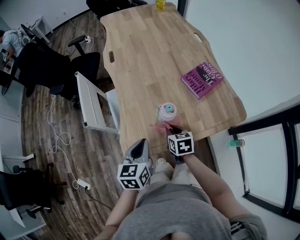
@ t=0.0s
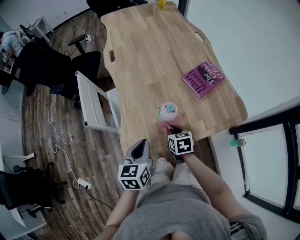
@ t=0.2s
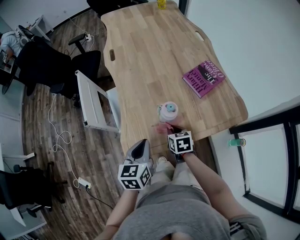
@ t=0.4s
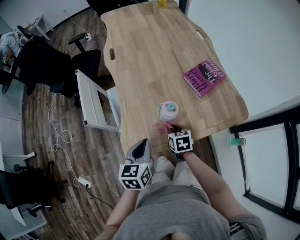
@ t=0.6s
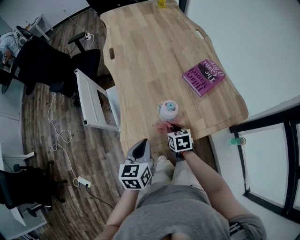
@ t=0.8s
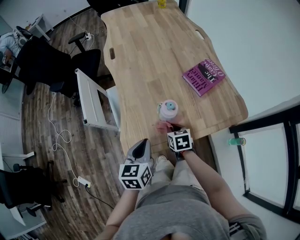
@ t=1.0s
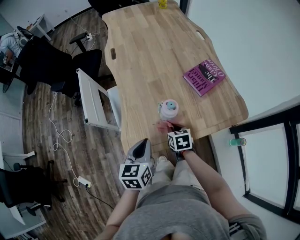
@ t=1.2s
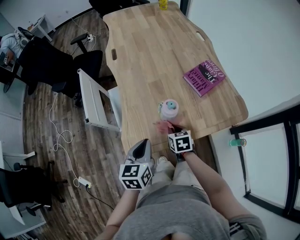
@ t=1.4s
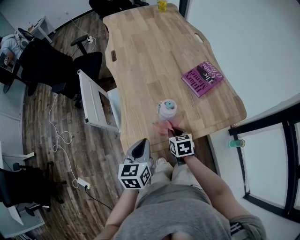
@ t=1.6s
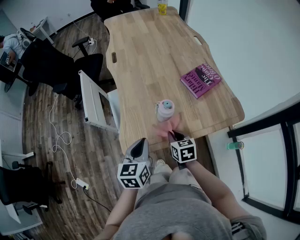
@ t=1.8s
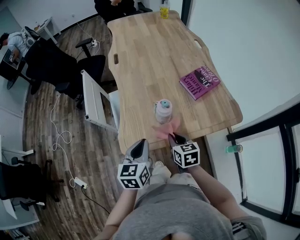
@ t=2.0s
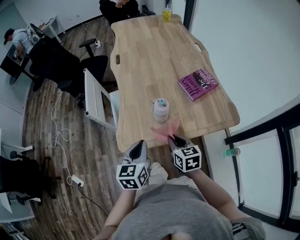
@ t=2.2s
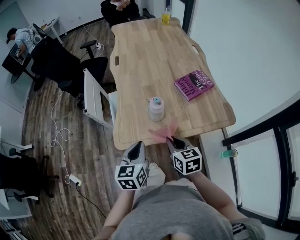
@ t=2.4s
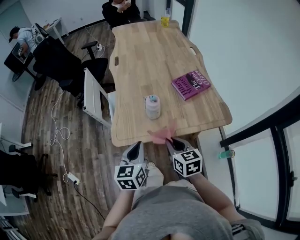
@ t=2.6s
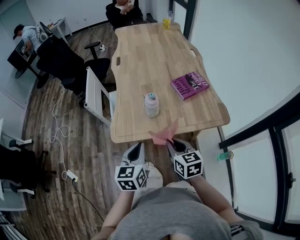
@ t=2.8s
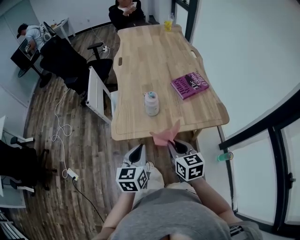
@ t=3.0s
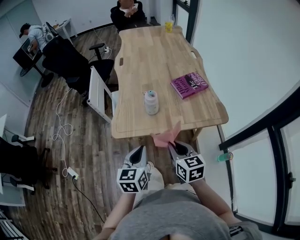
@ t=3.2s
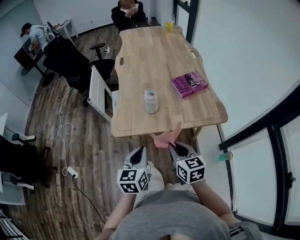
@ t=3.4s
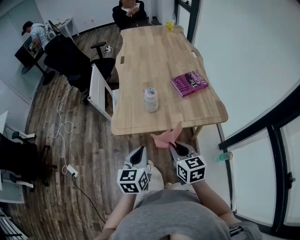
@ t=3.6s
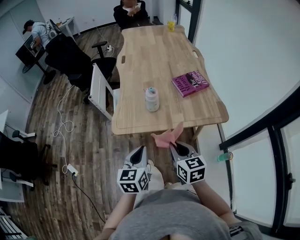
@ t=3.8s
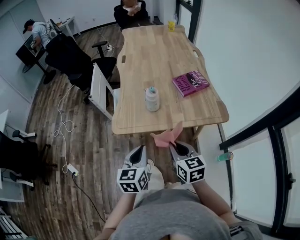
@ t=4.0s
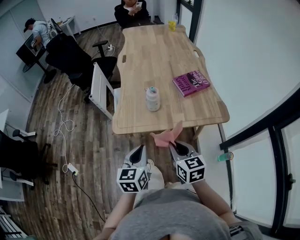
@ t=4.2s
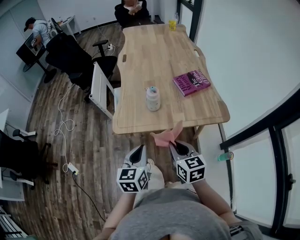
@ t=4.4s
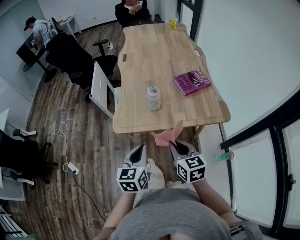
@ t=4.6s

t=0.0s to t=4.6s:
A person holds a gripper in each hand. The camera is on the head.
t=0.0s to t=1.6s: There are only small adjustments of the grippers.
t=1.6s to t=3.0s: The right gripper heads backward and upward, covering some 25 cm, and changes its angle by approximately 20 degrees. Meanwhile the left gripper heads backward and to the right, covering some 15 cm.
t=3.0s to t=4.6s: The grippers stay close to where they were, moving slightly.

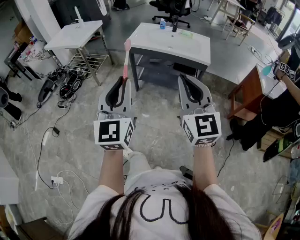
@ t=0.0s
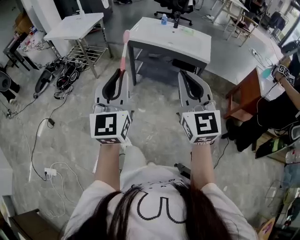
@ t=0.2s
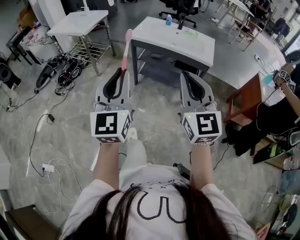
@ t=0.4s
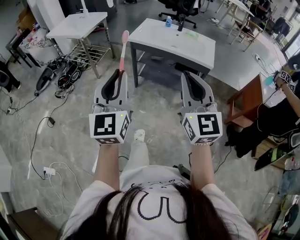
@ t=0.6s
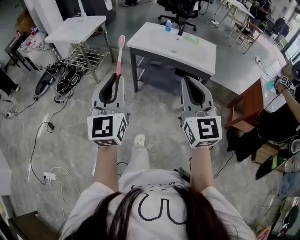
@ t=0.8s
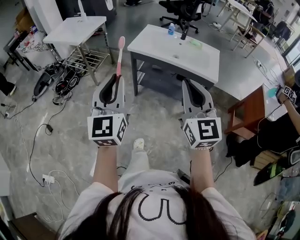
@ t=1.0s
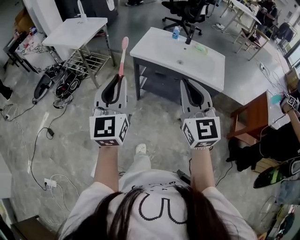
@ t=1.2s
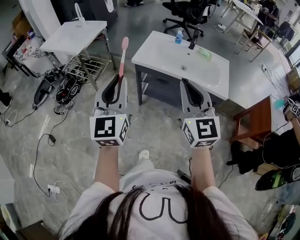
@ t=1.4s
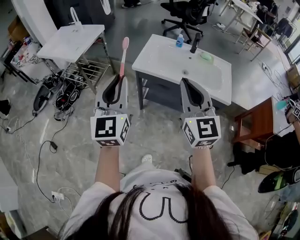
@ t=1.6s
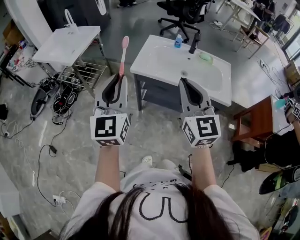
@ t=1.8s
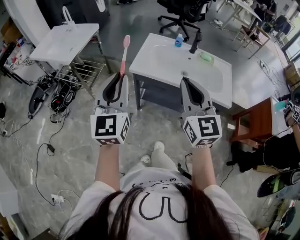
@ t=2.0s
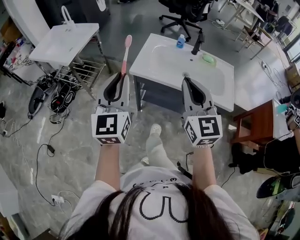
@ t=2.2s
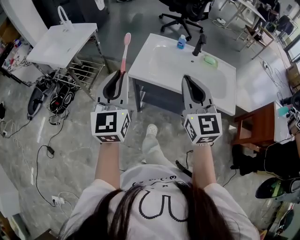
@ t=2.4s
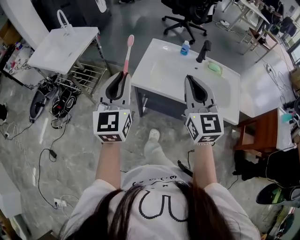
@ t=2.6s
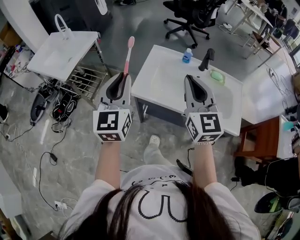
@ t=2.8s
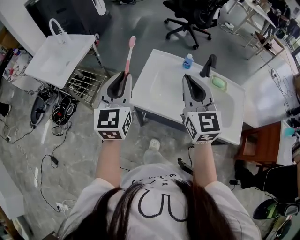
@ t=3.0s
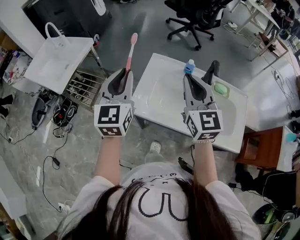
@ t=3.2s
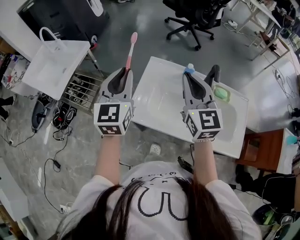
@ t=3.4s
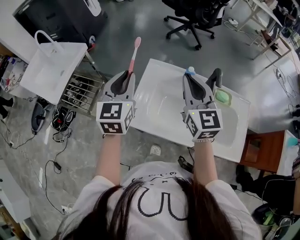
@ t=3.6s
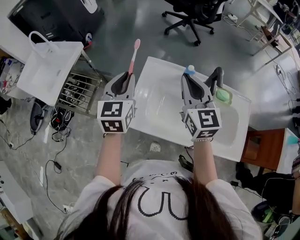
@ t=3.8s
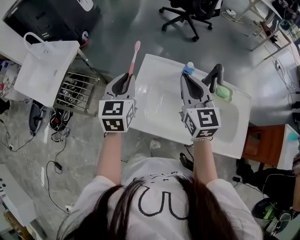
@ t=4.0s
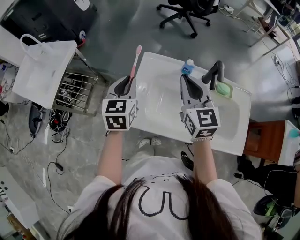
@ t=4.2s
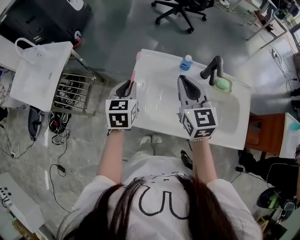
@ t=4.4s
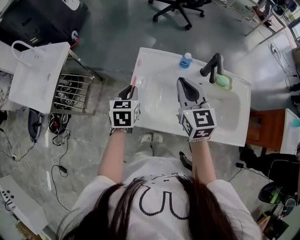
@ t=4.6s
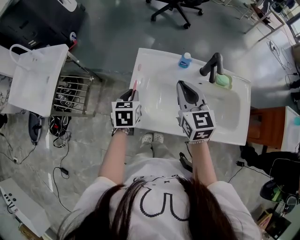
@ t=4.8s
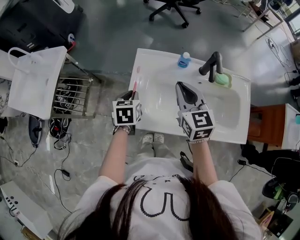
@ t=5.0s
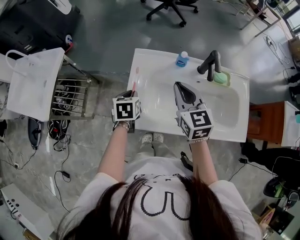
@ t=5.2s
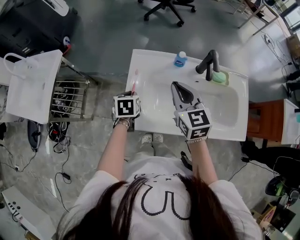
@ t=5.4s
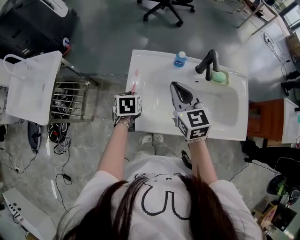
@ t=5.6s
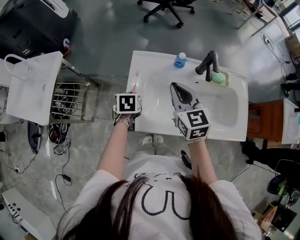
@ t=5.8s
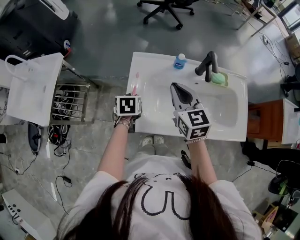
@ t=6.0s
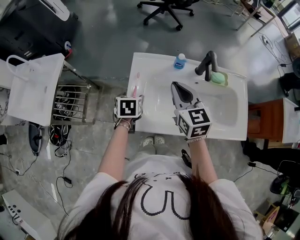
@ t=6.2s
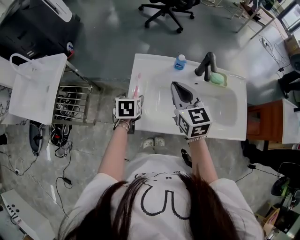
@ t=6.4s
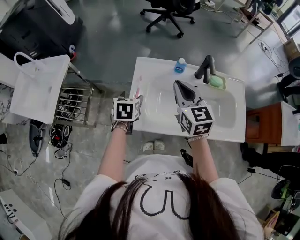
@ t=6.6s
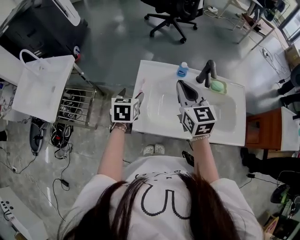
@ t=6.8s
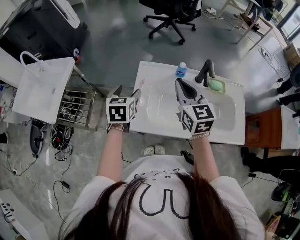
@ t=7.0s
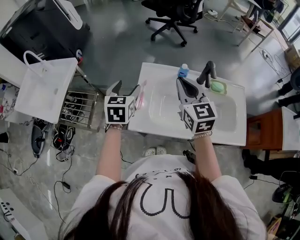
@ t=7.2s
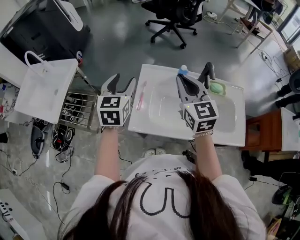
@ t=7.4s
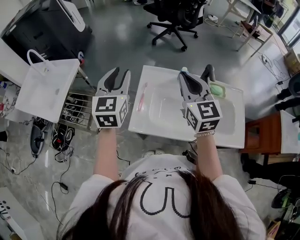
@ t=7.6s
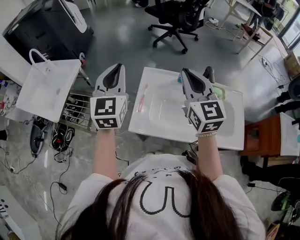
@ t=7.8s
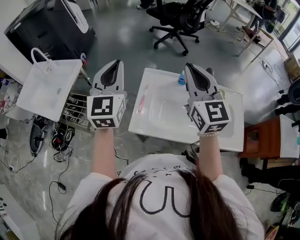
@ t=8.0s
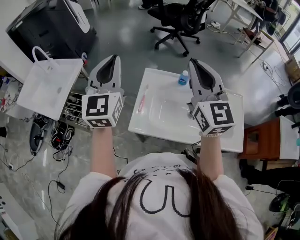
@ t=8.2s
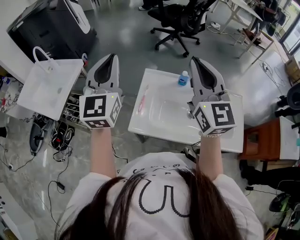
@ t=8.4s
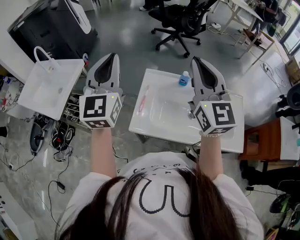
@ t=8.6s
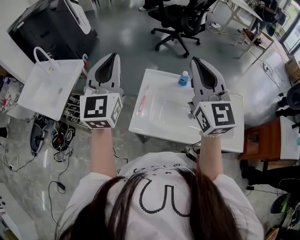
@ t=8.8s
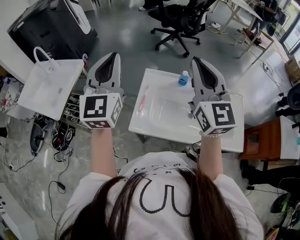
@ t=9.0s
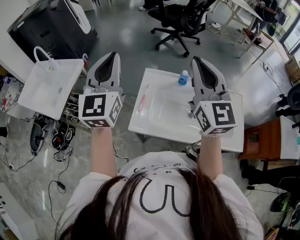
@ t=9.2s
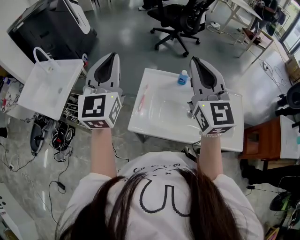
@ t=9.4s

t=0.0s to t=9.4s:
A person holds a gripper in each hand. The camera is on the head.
t=0.0s to t=1.6s: The two grippers go roughly 35 cm forward.
t=1.6s to t=3.2s: The two grippers go some 40 cm forward.
t=3.2s to t=4.8s: The right gripper heads downward and forward, covering approximately 15 cm, and rotates roughly 20 degrees. The left gripper moves downward and forward, some 25 cm, and tilts its fingers about 40 degrees downward.
t=4.8s to t=6.2s: The left gripper opens up.
t=6.2s to t=7.8s: The right gripper shifts some 15 cm upward, and changes its angle by approximately 20 degrees. The left gripper moves upward, about 30 cm, points its fingers approximately 60 degrees further upward, and closes.
t=7.8s to t=9.4s: The two grippers go some 10 cm upward.

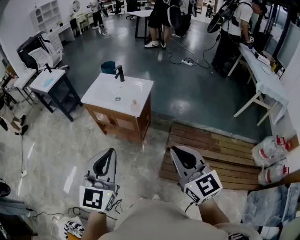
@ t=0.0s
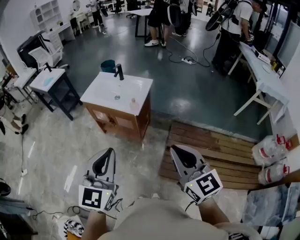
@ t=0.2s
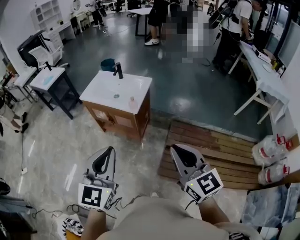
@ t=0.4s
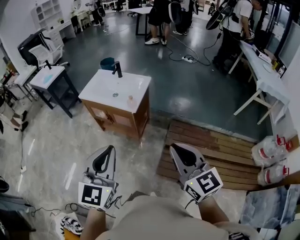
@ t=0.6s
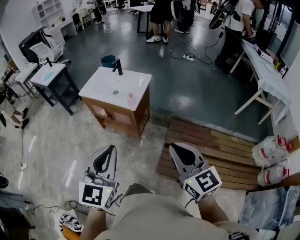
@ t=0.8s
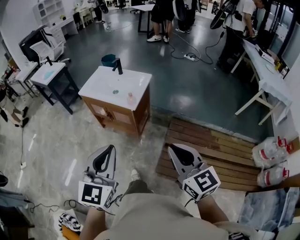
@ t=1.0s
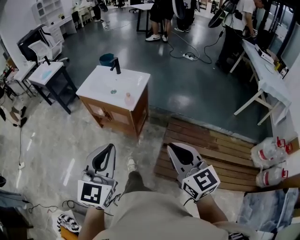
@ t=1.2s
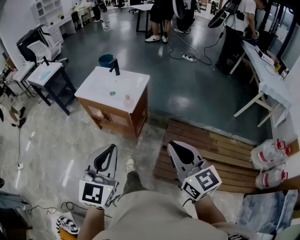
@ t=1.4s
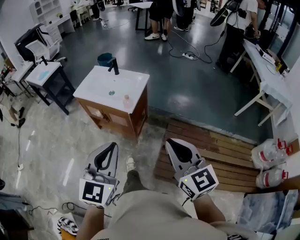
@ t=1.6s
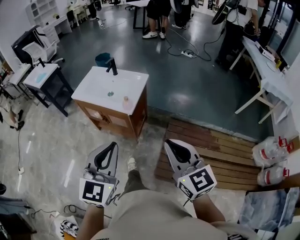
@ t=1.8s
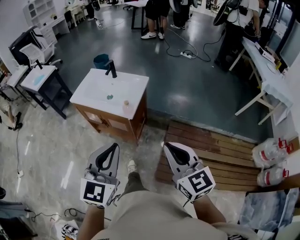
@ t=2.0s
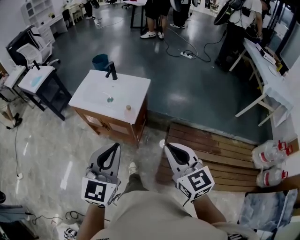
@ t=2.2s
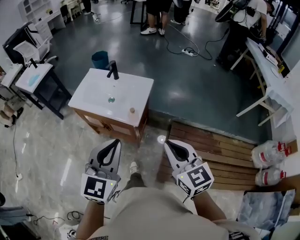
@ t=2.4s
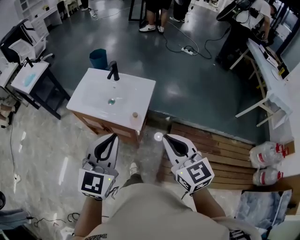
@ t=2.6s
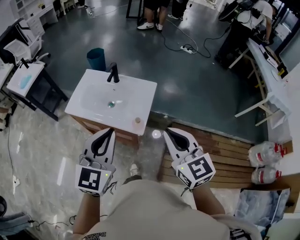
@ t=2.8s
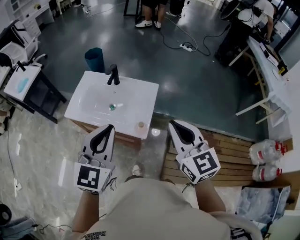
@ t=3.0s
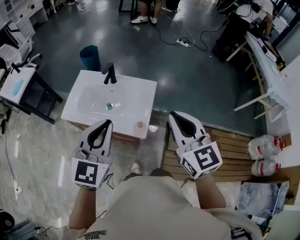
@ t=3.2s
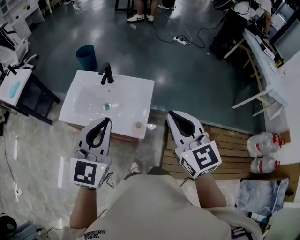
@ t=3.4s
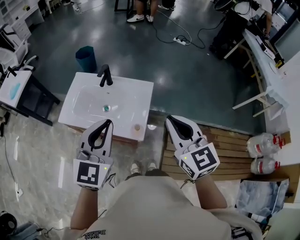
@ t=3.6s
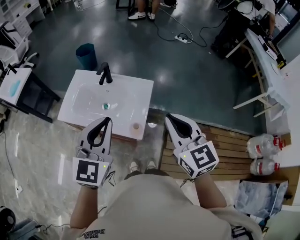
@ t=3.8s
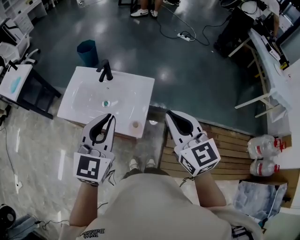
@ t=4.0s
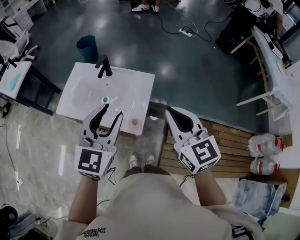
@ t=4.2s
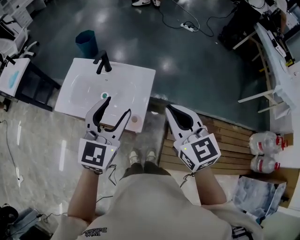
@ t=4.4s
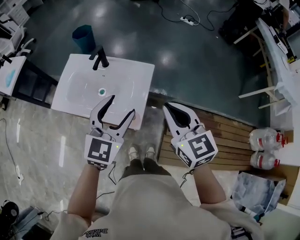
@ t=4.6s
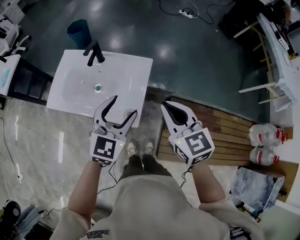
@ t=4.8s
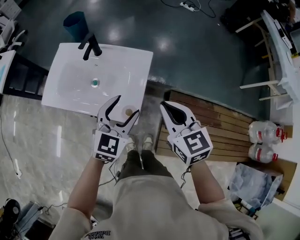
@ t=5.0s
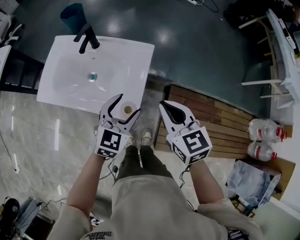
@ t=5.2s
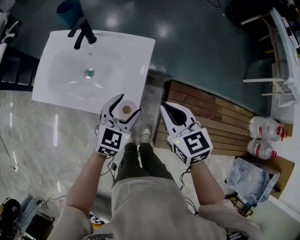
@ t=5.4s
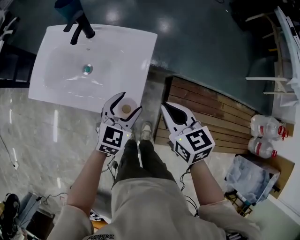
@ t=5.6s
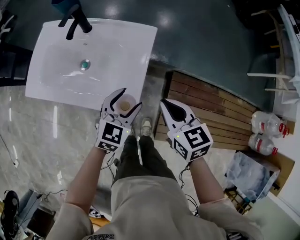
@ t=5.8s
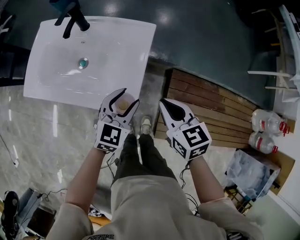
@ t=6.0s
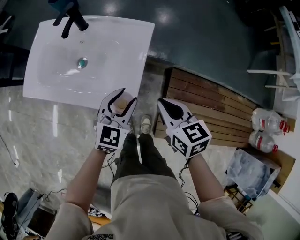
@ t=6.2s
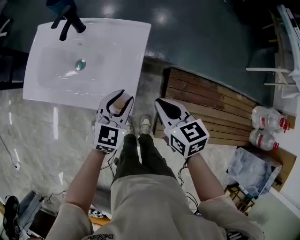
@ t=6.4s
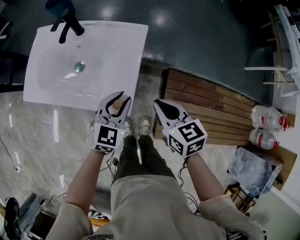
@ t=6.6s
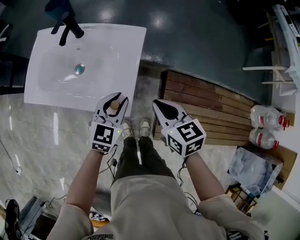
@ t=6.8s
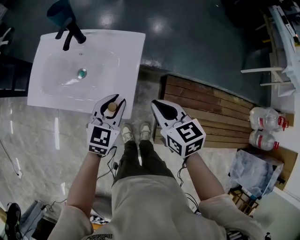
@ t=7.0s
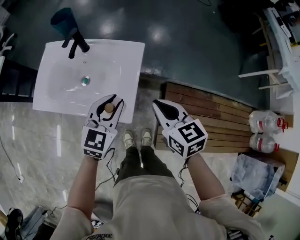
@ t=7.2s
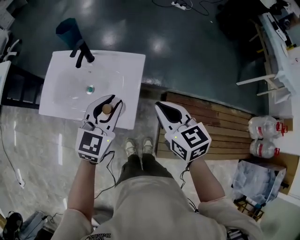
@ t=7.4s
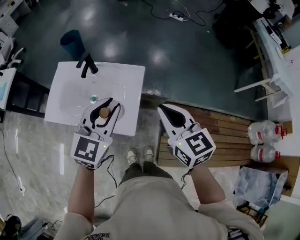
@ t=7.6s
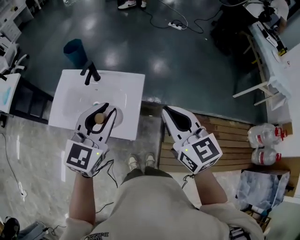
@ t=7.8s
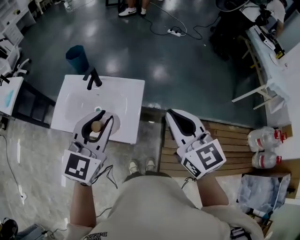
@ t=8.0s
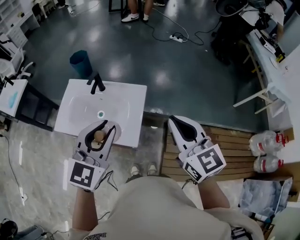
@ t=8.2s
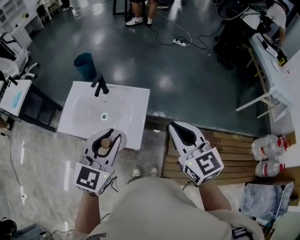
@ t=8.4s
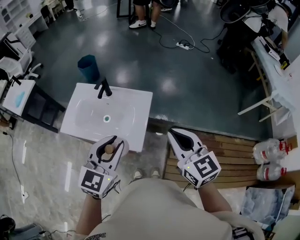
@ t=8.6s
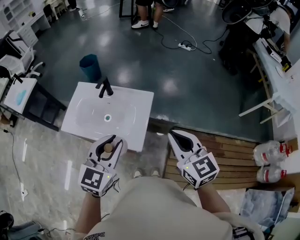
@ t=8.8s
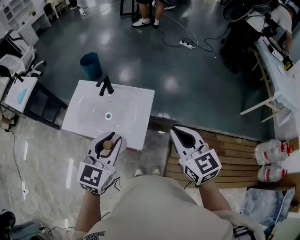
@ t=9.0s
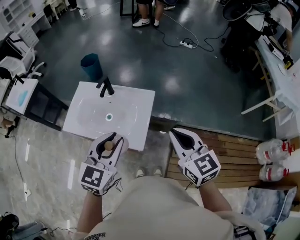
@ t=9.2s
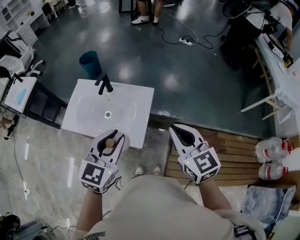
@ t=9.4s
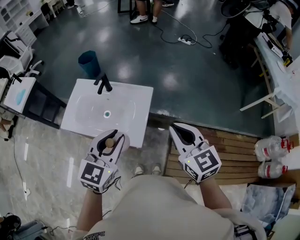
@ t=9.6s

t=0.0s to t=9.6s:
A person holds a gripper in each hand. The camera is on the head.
t=0.0s to t=1.6s: The right gripper travels forward by roughly 5 cm. The left gripper moves to the right, downward and forward, approximately 10 cm.
t=1.6s to t=3.2s: The two grippers travel together, forward, roughly 40 cm.
t=3.2s to t=4.8s: The right gripper moves downward and forward, some 15 cm, while the left gripper moves downward, to the right and forward, about 20 cm, and opens.
t=4.8s to t=6.4s: Both grippers travel together downward, roughly 20 cm. The left gripper closes, while the right gripper turns by roughly 20 degrees.
t=6.4s to t=8.0s: The grippers both shift upward by approximately 35 cm. The right gripper rotates roughly 30 degrees.
t=8.0s to t=9.6s: The left gripper changes place by roughly 5 cm.
